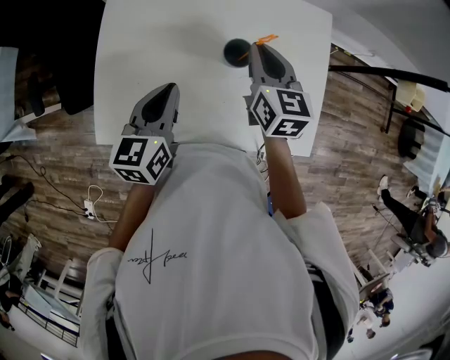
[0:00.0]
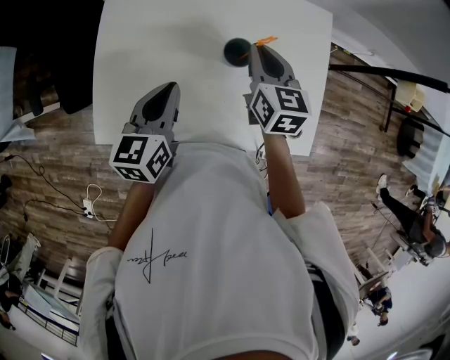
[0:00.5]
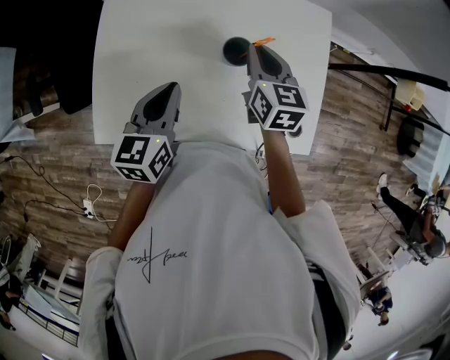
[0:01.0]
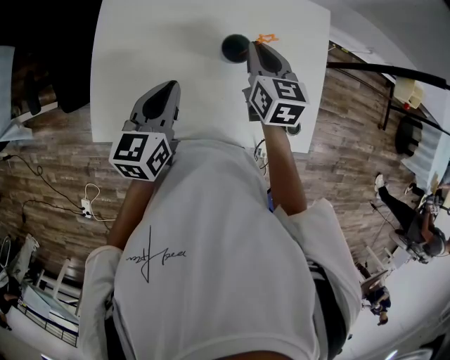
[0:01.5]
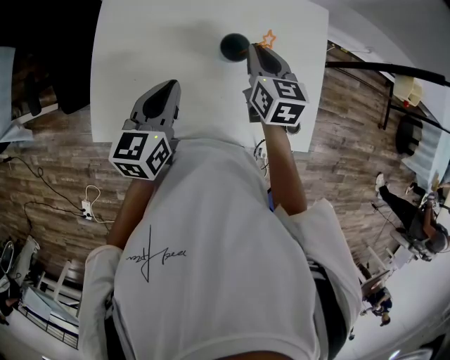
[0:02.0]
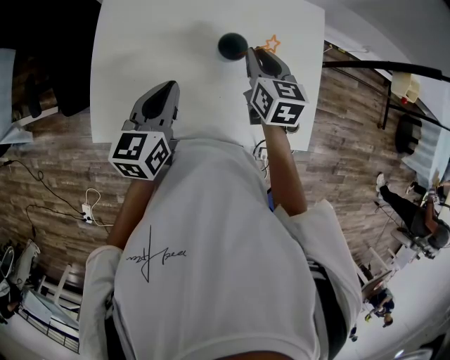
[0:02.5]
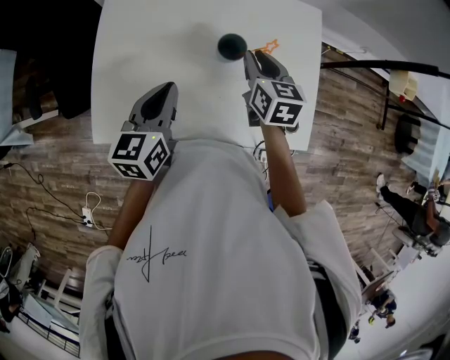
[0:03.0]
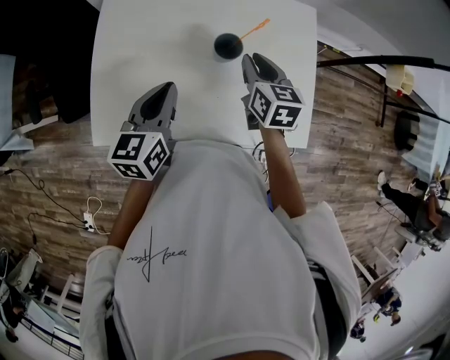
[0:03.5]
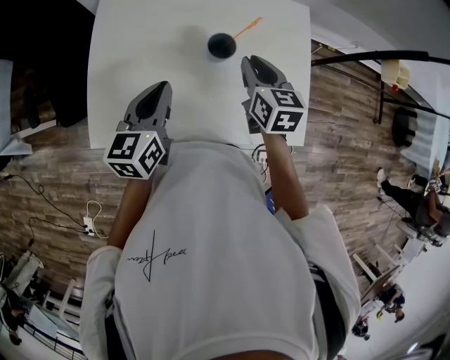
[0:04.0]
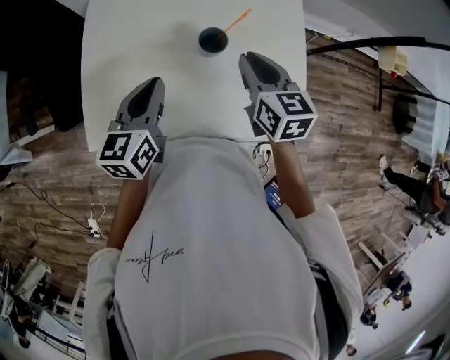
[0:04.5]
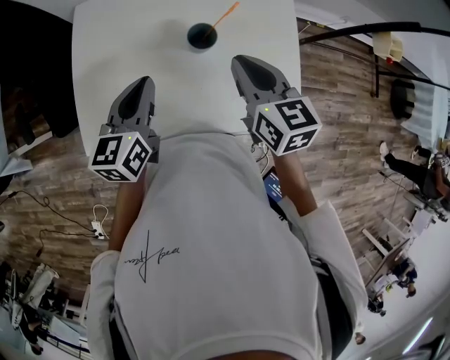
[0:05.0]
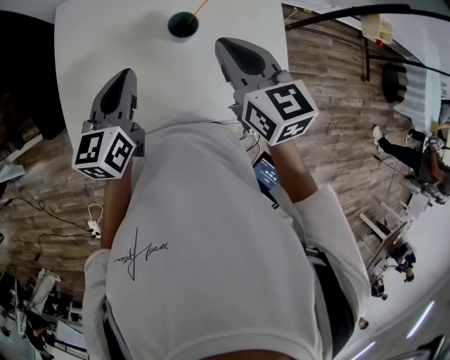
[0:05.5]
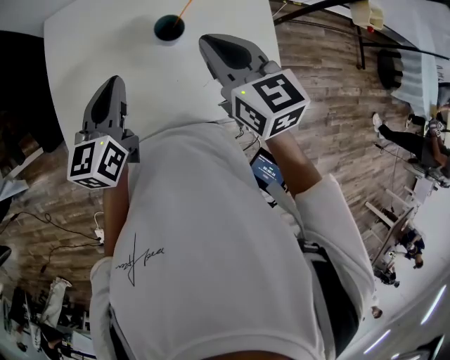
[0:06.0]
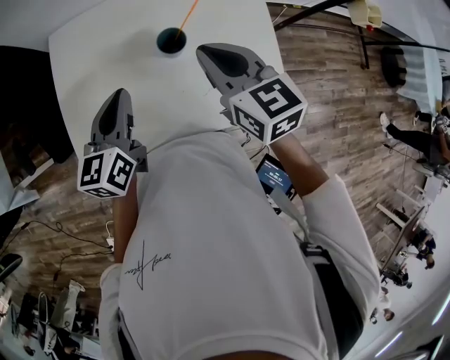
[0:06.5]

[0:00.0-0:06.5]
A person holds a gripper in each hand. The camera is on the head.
0:00.0 to 0:02.0: The grippers make only small movements.
0:02.0 to 0:04.5: The right gripper shifts approximately 10 cm backward and upward.
0:04.5 to 0:06.5: The right gripper travels upward by approximately 5 cm.

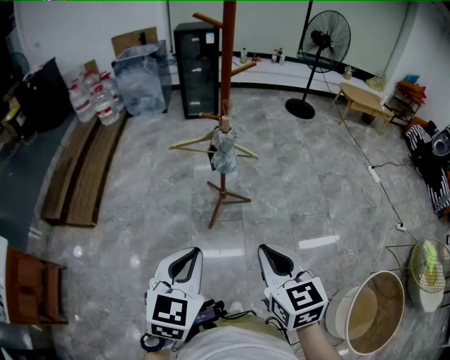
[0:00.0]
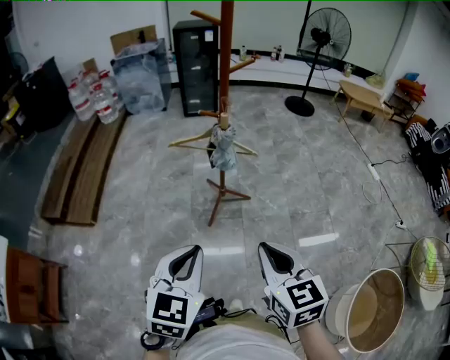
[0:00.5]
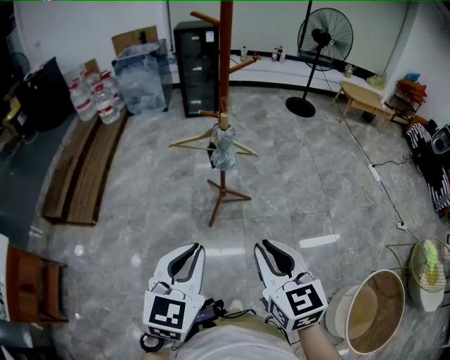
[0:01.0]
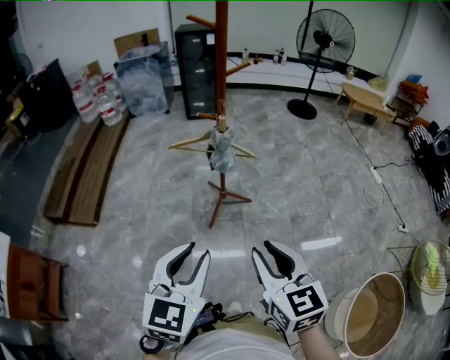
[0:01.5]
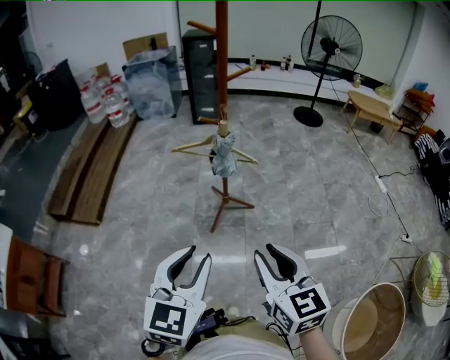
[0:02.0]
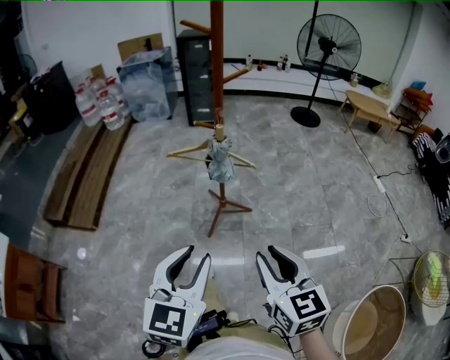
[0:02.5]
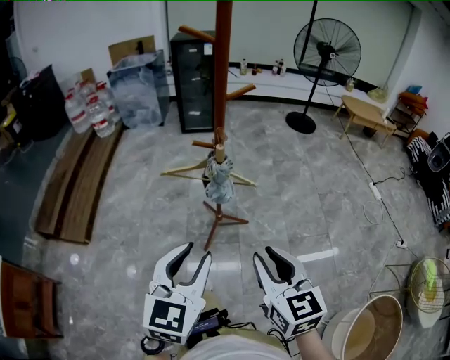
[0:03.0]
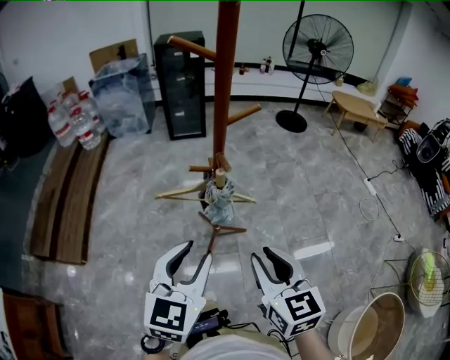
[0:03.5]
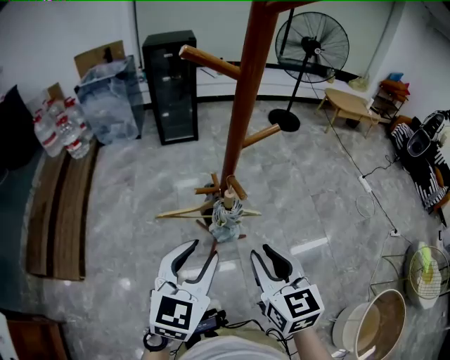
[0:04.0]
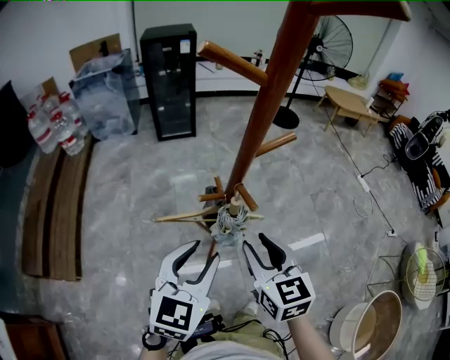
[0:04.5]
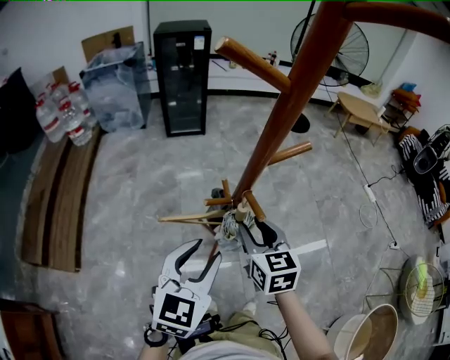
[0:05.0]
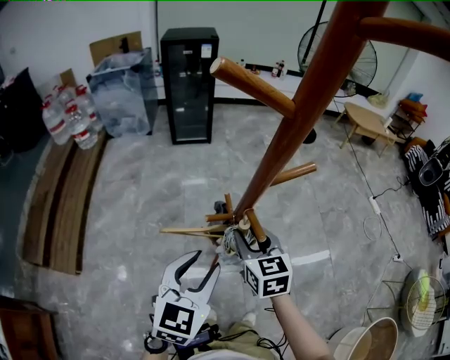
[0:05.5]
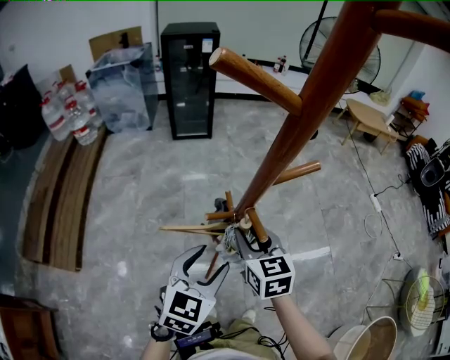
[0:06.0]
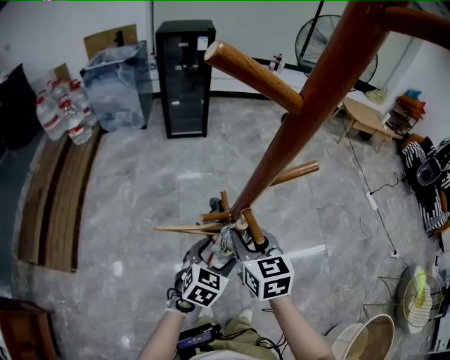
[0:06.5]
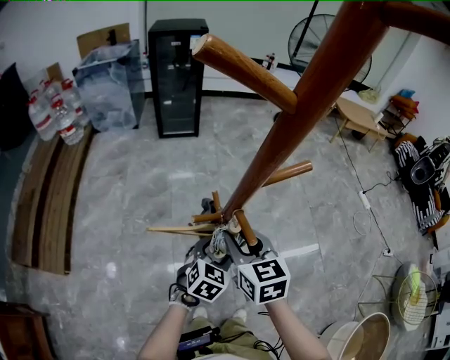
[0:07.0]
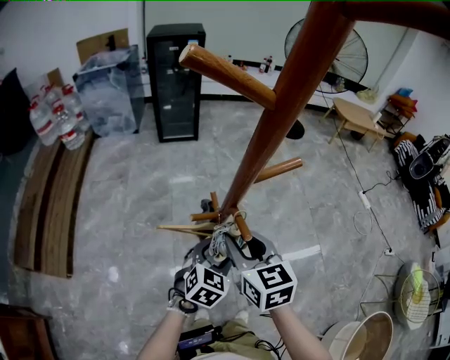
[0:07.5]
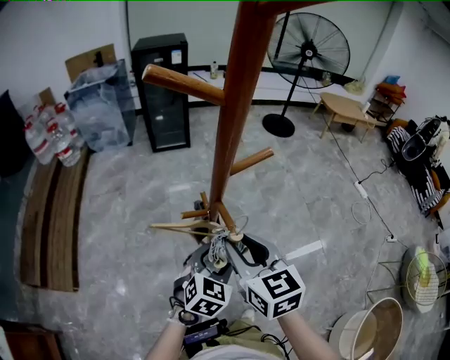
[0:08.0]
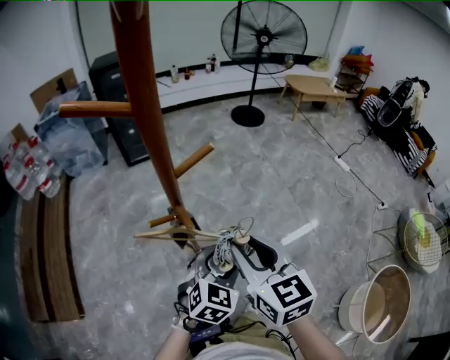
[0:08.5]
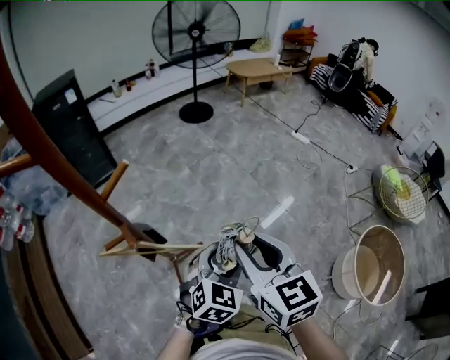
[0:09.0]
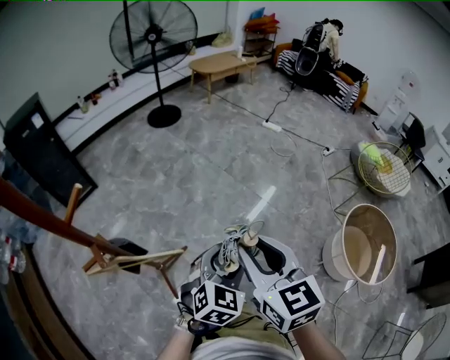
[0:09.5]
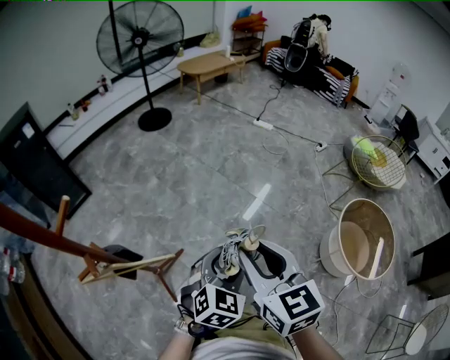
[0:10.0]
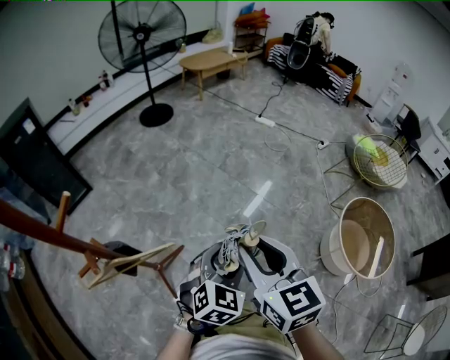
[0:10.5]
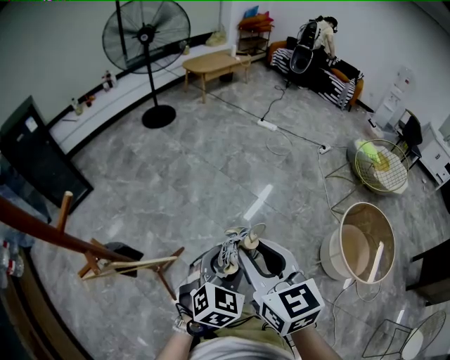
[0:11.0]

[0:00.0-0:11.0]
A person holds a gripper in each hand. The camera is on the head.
0:00.0 to 0:02.0: The left gripper shifts by about 5 cm, while the right gripper opens.
0:02.0 to 0:03.5: The two grippers go roughly 20 cm forward.
0:03.5 to 0:05.5: The right gripper shifts some 25 cm forward; the left gripper moves forward, some 15 cm.
0:05.5 to 0:07.5: The left gripper goes roughly 15 cm downward, to the right and forward.
0:07.5 to 0:09.0: The left gripper ends up some 25 cm from where it was, and rotates roughly 30 degrees. The right gripper moves roughly 25 cm, and swivels roughly 30 degrees.
0:09.0 to 0:11.0: Both grippers move to the right, approximately 10 cm.

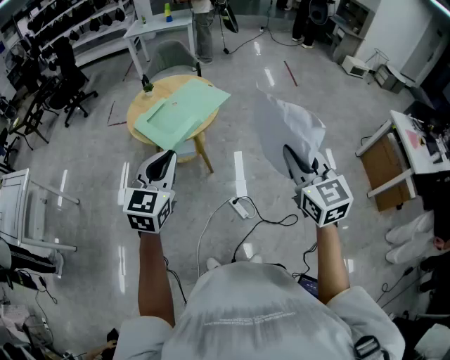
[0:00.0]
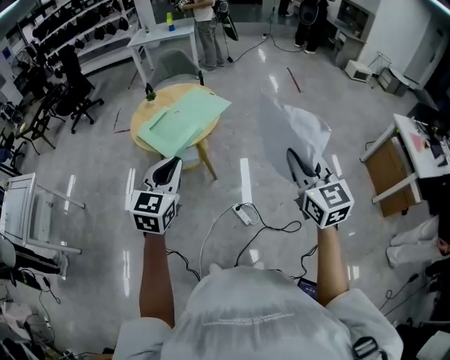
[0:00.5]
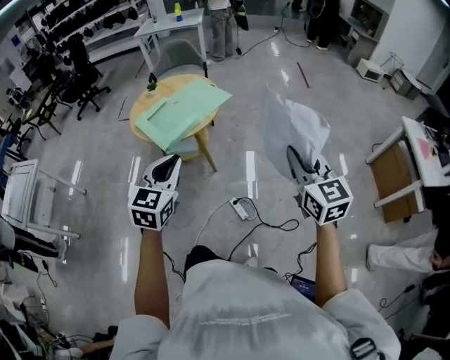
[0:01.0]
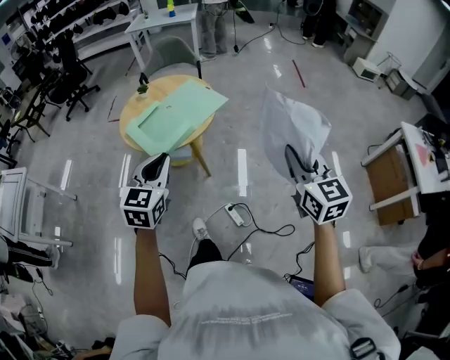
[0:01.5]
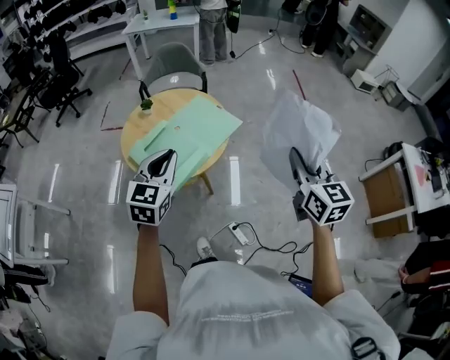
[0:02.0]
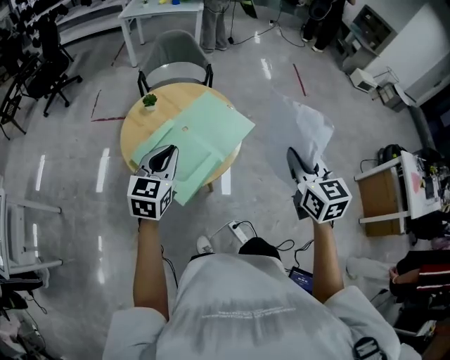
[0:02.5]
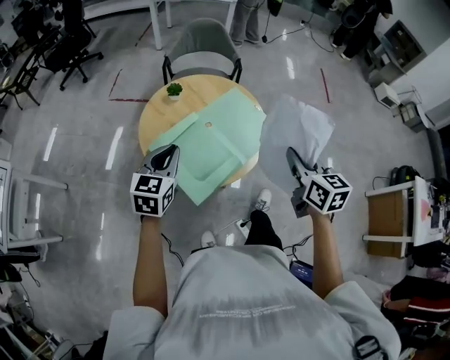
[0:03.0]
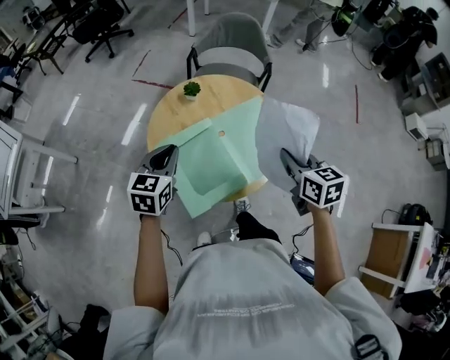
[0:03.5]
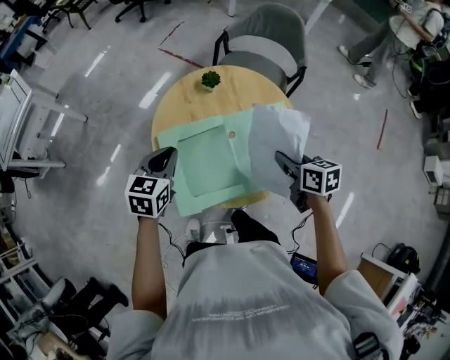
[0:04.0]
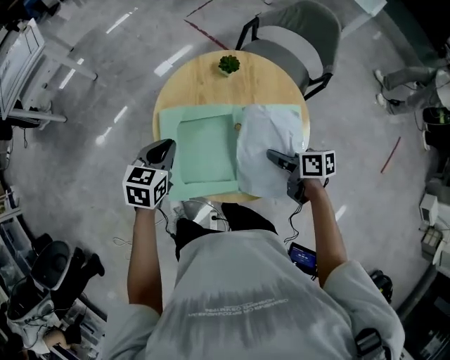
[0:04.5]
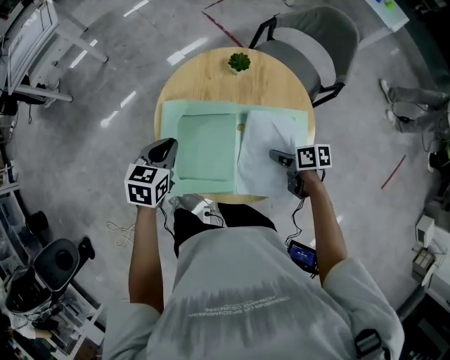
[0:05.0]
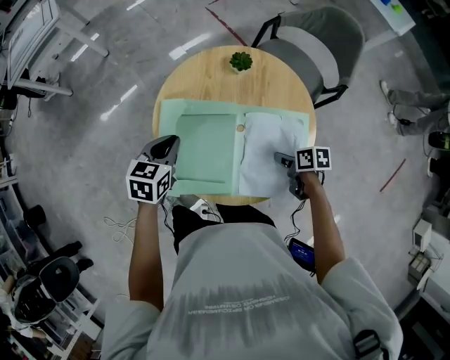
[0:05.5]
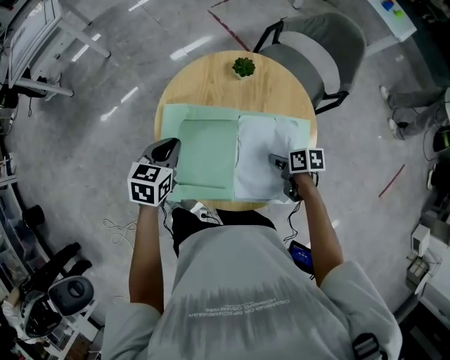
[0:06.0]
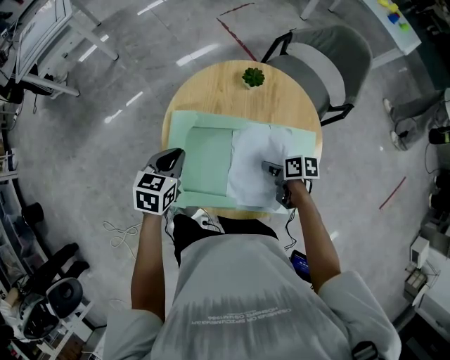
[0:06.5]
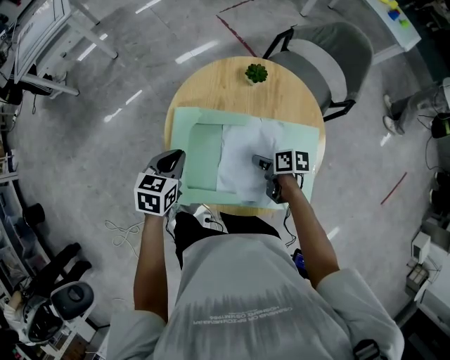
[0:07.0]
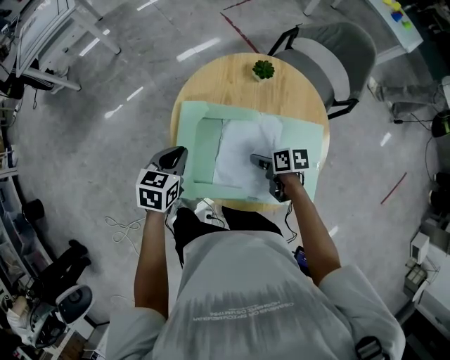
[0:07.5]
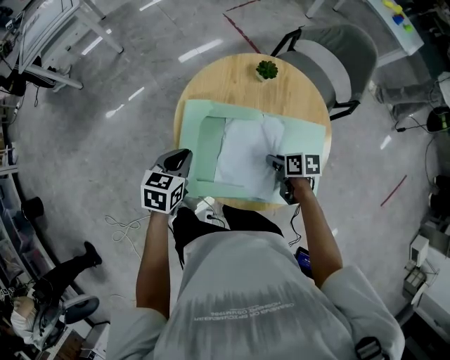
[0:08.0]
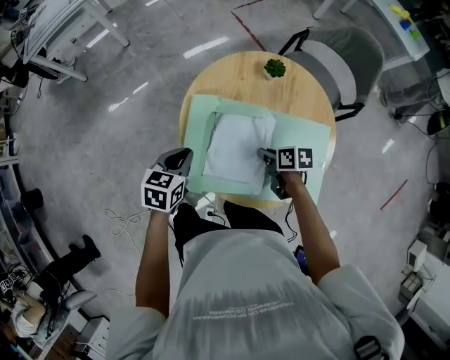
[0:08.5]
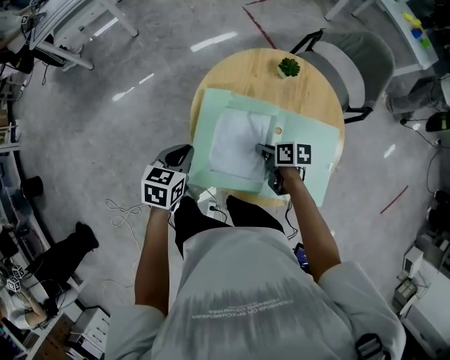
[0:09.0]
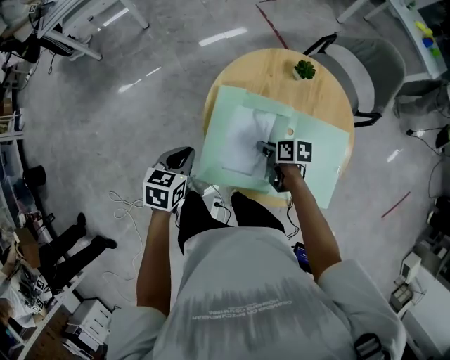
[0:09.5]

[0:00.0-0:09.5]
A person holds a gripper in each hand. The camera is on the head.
0:00.0 to 0:02.0: Both grippers move forward, roughly 25 cm.
0:02.0 to 0:04.0: The left gripper changes place by roughly 30 cm, and swivels some 40 degrees. The right gripper ends up approximately 50 cm from where it was, and swivels some 60 degrees.
0:04.0 to 0:05.5: The right gripper goes about 15 cm downward, and turns by about 30 degrees, while the left gripper shifts about 5 cm downward.
0:05.5 to 0:07.5: The left gripper moves to the left, roughly 5 cm; the right gripper heads to the left and forward, covering some 15 cm, and opens.
0:07.5 to 0:09.5: Both grippers travel together to the left, about 10 cm. The right gripper closes its fingers.
